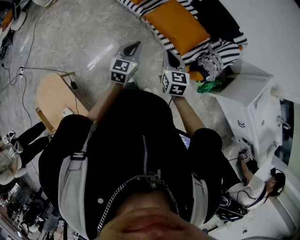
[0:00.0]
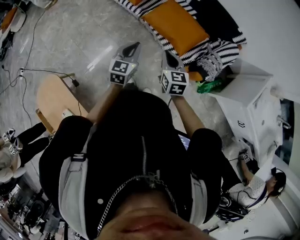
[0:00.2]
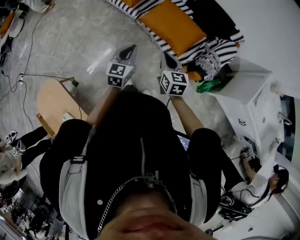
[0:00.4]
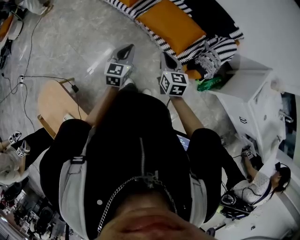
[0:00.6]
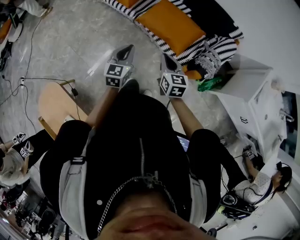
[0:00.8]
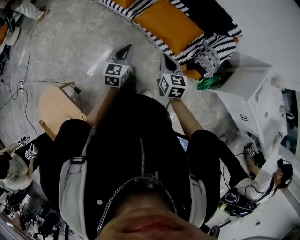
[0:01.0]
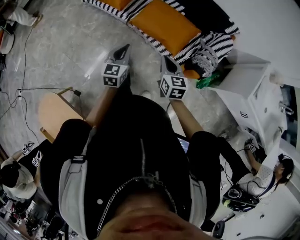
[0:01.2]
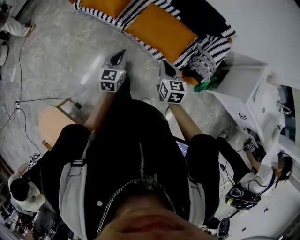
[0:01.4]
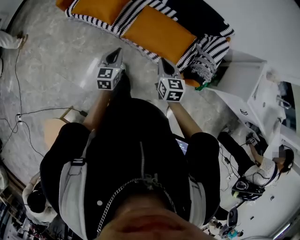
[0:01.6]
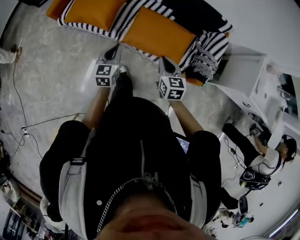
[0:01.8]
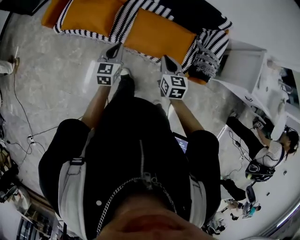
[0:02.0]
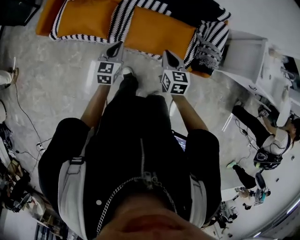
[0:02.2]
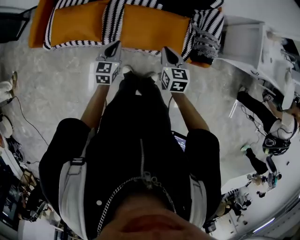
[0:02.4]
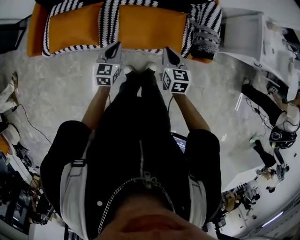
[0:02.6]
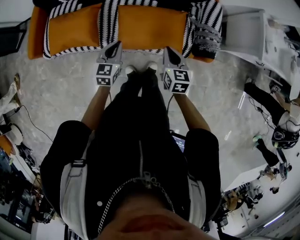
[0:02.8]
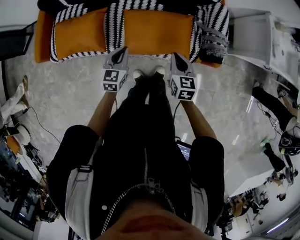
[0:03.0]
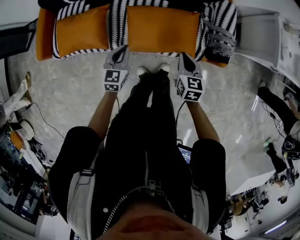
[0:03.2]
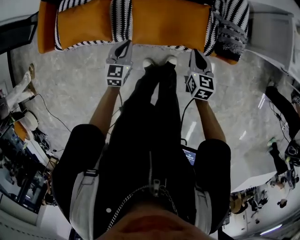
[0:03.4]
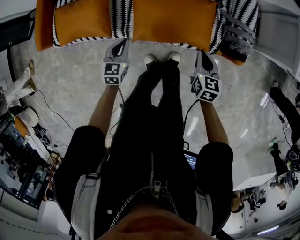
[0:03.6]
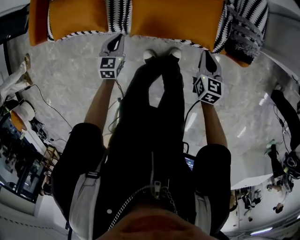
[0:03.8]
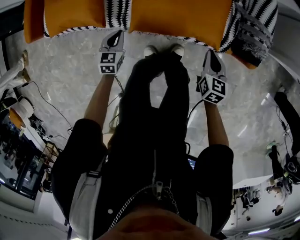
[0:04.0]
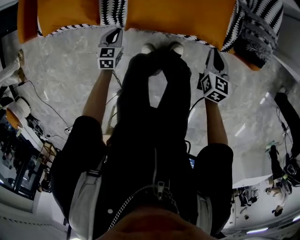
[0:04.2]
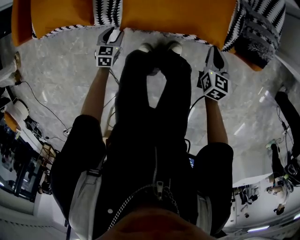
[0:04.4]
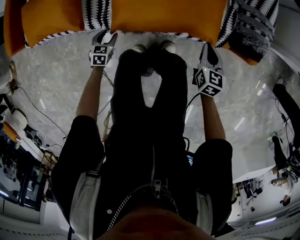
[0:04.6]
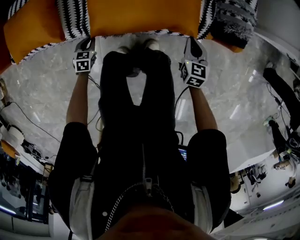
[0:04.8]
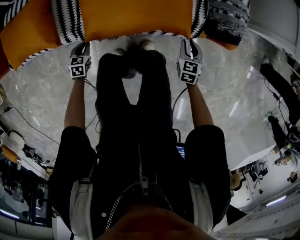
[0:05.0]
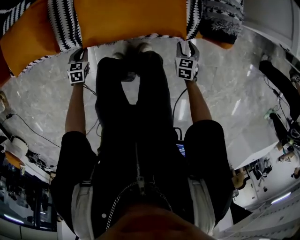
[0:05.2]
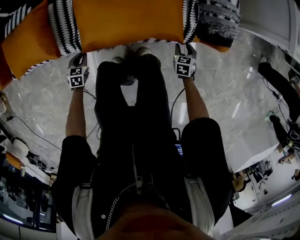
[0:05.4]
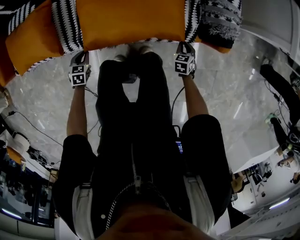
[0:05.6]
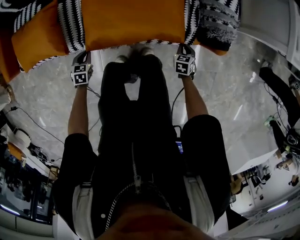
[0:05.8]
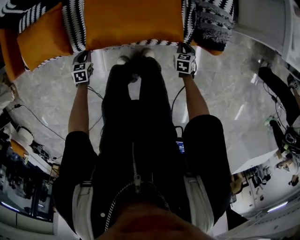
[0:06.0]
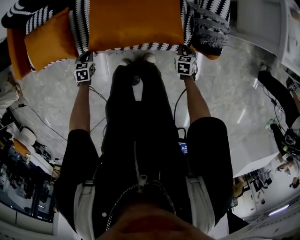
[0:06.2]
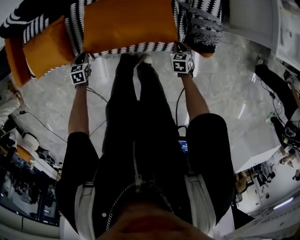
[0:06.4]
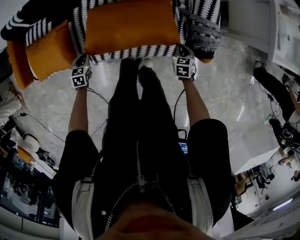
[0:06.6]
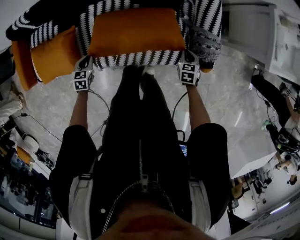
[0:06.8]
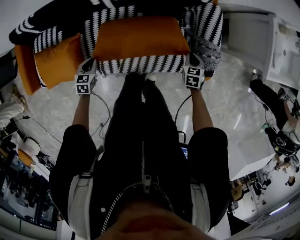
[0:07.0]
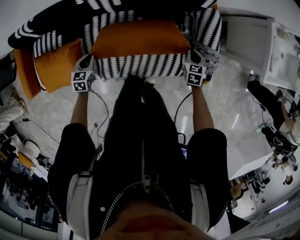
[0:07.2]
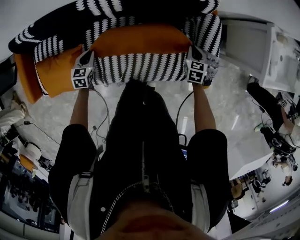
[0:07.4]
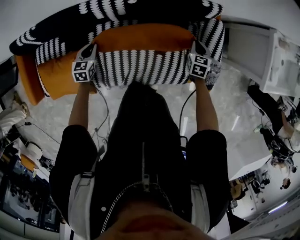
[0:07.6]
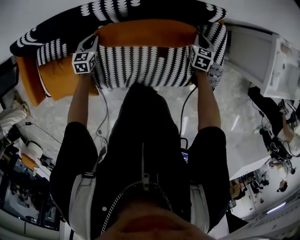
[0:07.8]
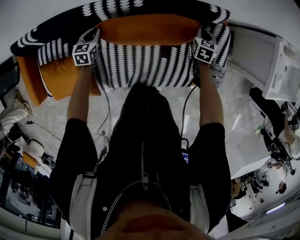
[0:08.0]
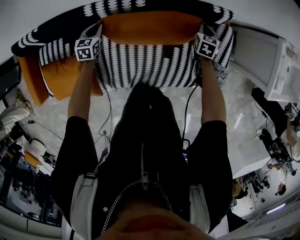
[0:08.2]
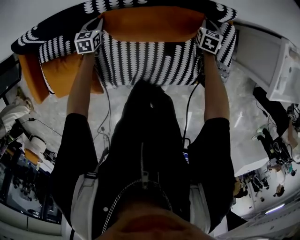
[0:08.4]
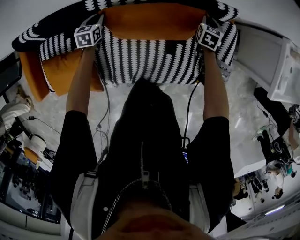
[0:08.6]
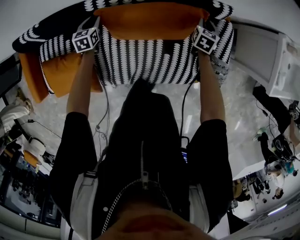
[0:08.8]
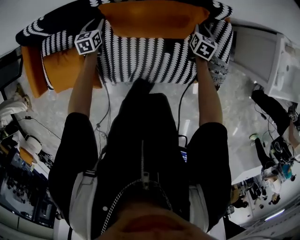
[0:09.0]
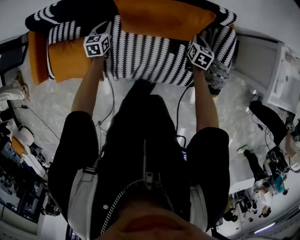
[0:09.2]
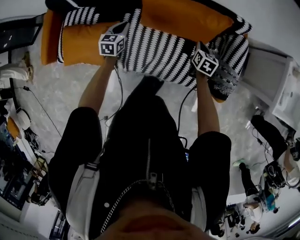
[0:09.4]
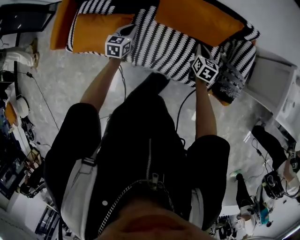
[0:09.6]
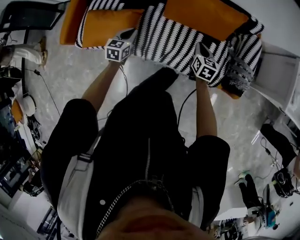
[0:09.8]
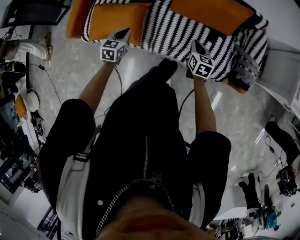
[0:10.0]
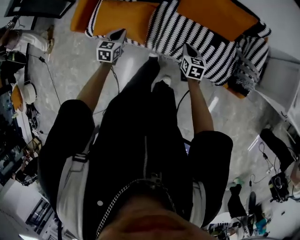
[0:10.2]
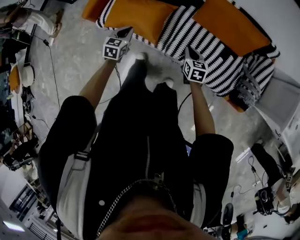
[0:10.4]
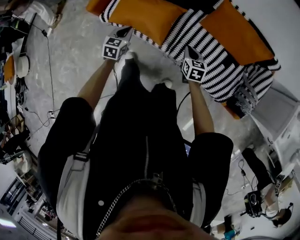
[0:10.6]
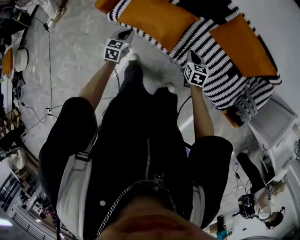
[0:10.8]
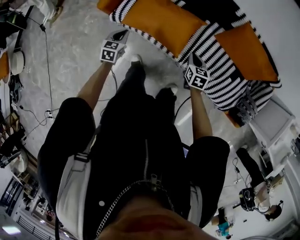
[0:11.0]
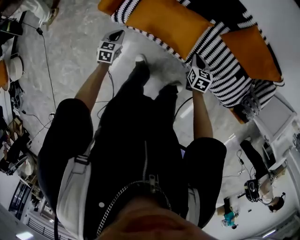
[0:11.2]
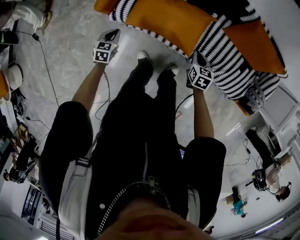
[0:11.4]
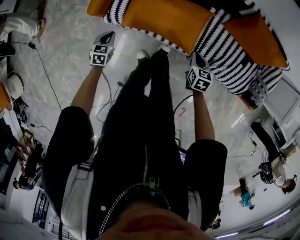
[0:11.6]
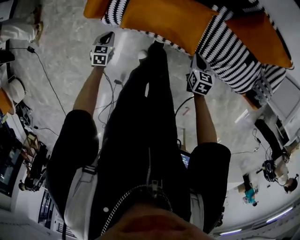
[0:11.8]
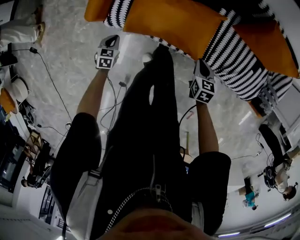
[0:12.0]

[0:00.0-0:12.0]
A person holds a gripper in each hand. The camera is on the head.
0:00.0 to 0:01.6: The two grippers go about 20 cm forward.
0:01.6 to 0:03.0: The left gripper ends up approximately 20 cm from where it was, and turns by some 30 degrees; the right gripper changes place by approximately 10 cm, and swivels some 30 degrees.
0:03.0 to 0:04.4: Both grippers travel together downward, about 35 cm. The left gripper rotates roughly 20 degrees, and opens.
0:04.4 to 0:06.0: The left gripper shifts roughly 10 cm upward, and closes up. Meanwhile the right gripper shifts roughly 15 cm to the right and downward, rotates roughly 30 degrees, and opens and closes again.
0:06.0 to 0:07.6: Both grippers travel together forward and upward, about 40 cm.
0:07.6 to 0:09.0: The left gripper heads forward, covering approximately 10 cm. Meanwhile the right gripper is displaced to the left and forward by some 10 cm.
0:09.0 to 0:10.4: The two grippers travel together, roughly 50 cm. The right gripper swivels roughly 40 degrees. Meanwhile the left gripper closes its fingers.
0:10.4 to 0:12.0: The right gripper goes approximately 35 cm to the left. Meanwhile the left gripper moves to the left and downward, about 50 cm.

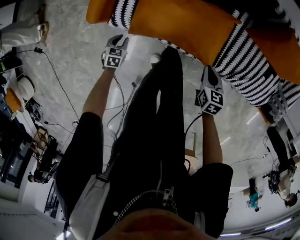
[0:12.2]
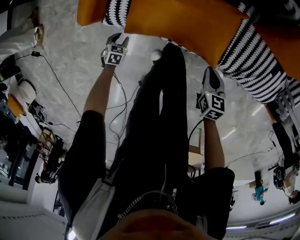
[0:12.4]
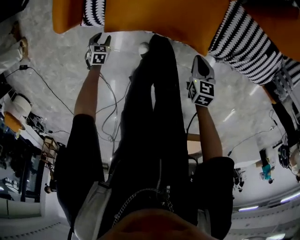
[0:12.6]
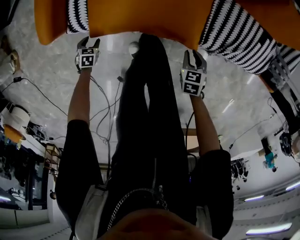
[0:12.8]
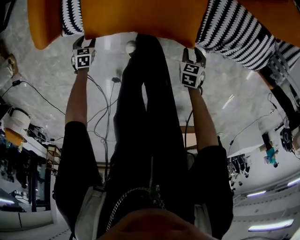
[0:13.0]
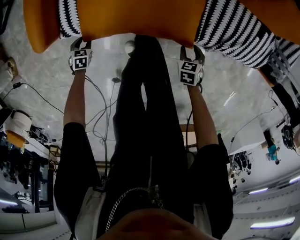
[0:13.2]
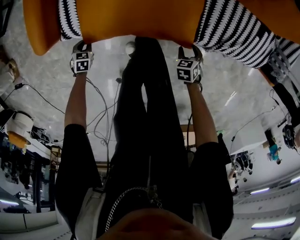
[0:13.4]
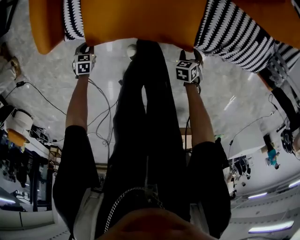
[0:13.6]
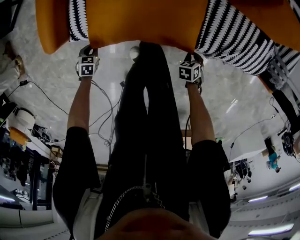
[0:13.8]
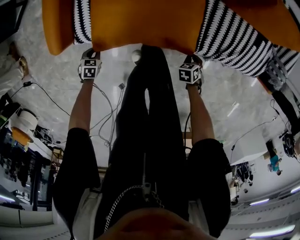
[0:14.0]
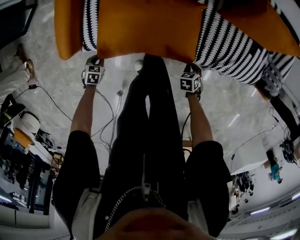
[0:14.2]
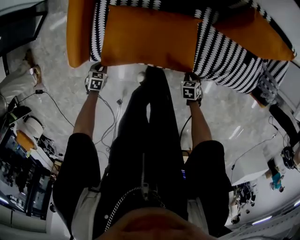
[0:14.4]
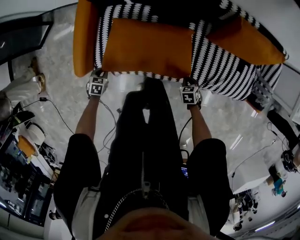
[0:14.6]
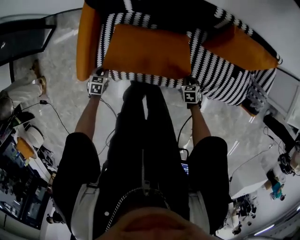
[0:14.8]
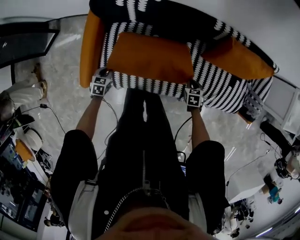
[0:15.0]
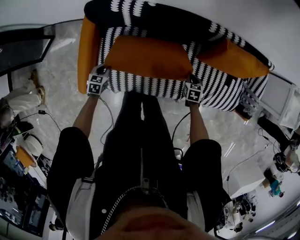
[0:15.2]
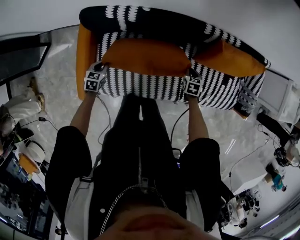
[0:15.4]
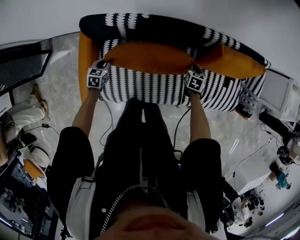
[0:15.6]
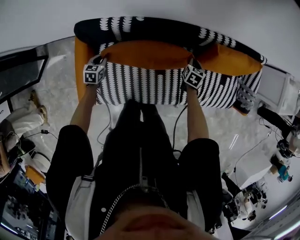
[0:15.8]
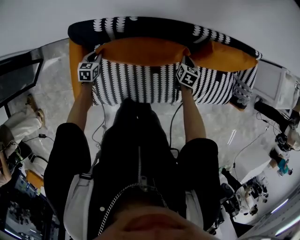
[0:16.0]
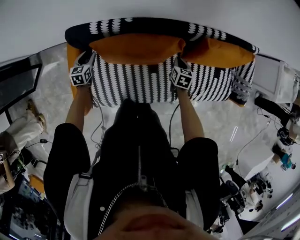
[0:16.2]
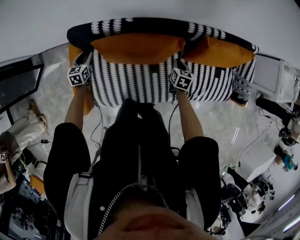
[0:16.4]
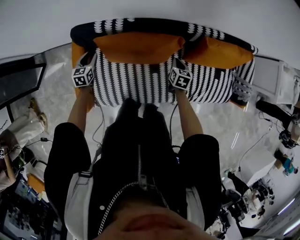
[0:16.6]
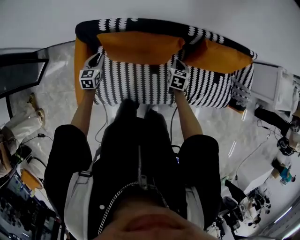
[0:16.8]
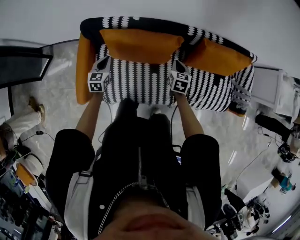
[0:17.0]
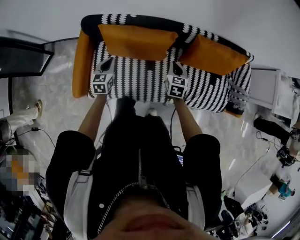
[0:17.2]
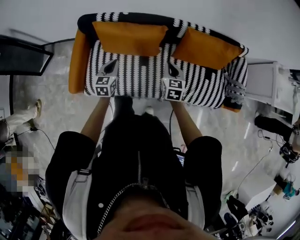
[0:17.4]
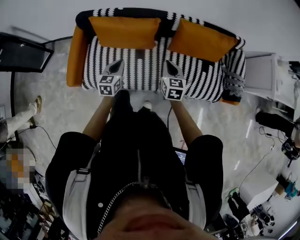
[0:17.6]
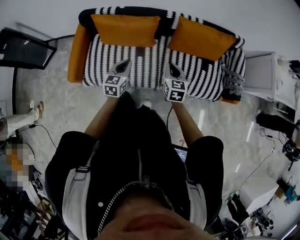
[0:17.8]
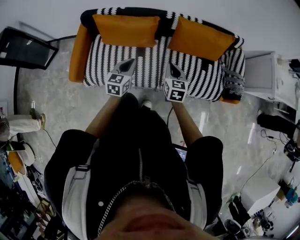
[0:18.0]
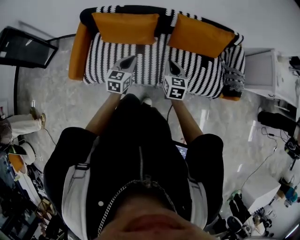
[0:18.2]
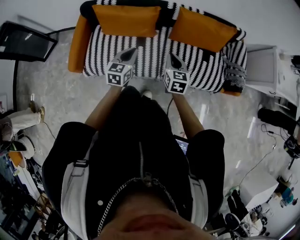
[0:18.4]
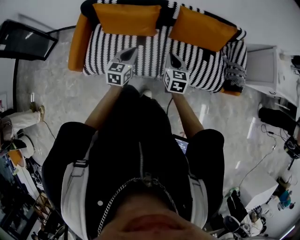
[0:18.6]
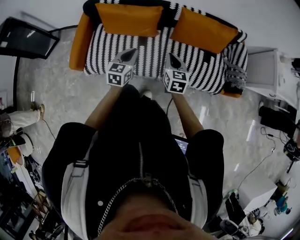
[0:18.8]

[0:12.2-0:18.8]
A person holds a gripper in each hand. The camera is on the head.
0:12.2 to 0:13.8: The right gripper heads downward, covering roughly 20 cm, turns by some 40 degrees, and opens, then closes again, while the left gripper travels downward by some 10 cm, and opens, then closes once more.
0:13.8 to 0:15.4: The right gripper ends up about 40 cm from where it was, and changes its angle by roughly 30 degrees. The left gripper shifts by about 40 cm, and swivels some 20 degrees.
0:15.4 to 0:17.2: The right gripper travels upward by approximately 20 cm, and changes its angle by roughly 30 degrees, while the left gripper goes approximately 20 cm upward and to the right, rotates roughly 30 degrees, and opens, then closes again.
0:17.2 to 0:18.8: The right gripper shifts approximately 25 cm backward and to the right. Meanwhile the left gripper is displaced to the right and backward by roughly 35 cm.

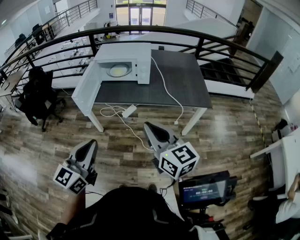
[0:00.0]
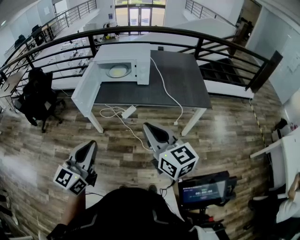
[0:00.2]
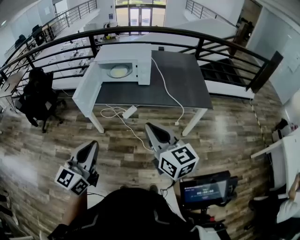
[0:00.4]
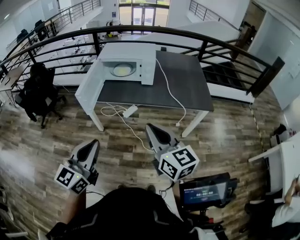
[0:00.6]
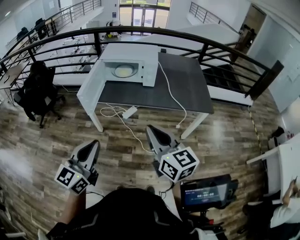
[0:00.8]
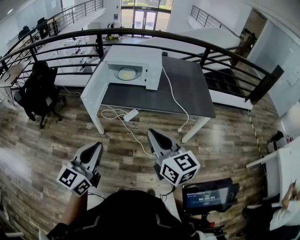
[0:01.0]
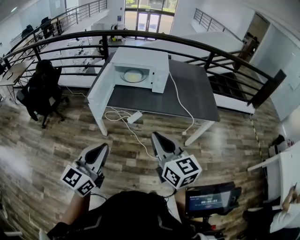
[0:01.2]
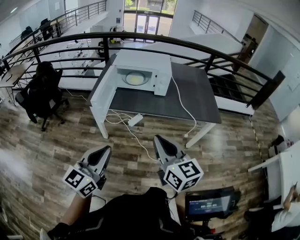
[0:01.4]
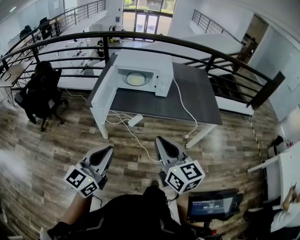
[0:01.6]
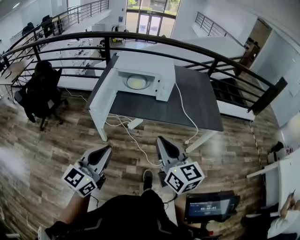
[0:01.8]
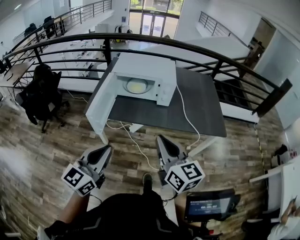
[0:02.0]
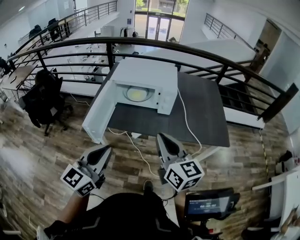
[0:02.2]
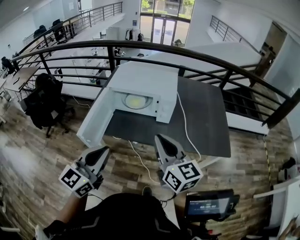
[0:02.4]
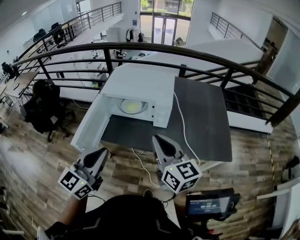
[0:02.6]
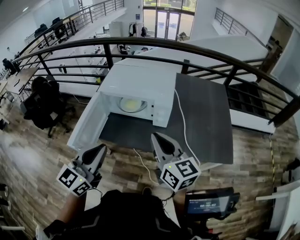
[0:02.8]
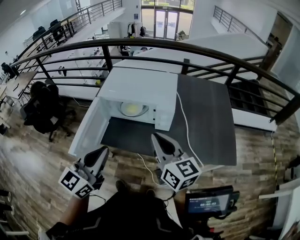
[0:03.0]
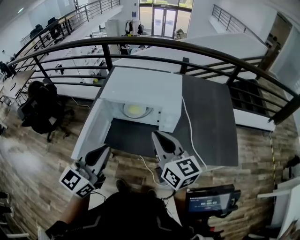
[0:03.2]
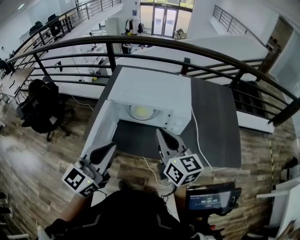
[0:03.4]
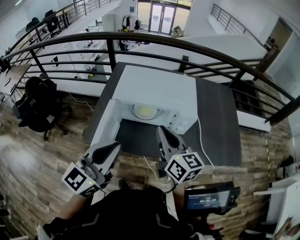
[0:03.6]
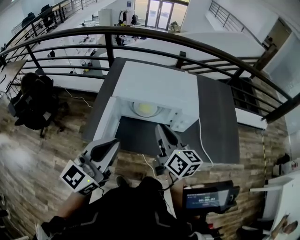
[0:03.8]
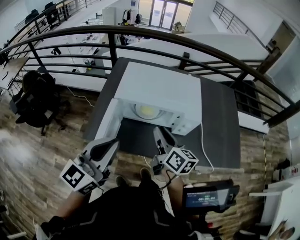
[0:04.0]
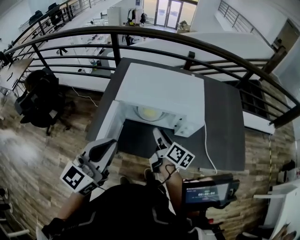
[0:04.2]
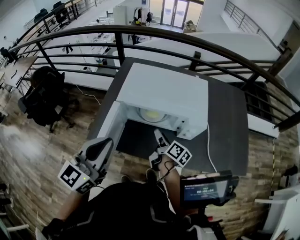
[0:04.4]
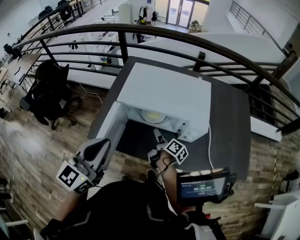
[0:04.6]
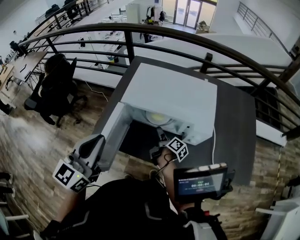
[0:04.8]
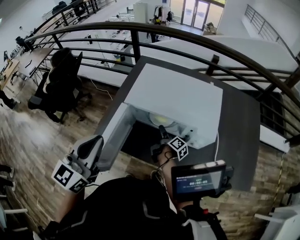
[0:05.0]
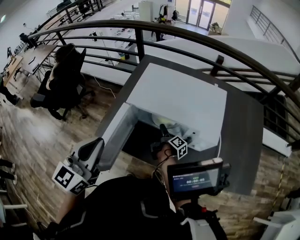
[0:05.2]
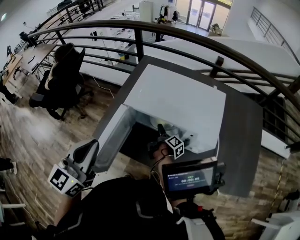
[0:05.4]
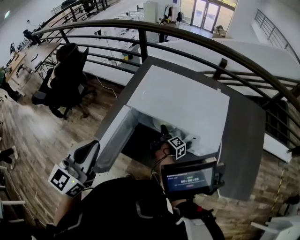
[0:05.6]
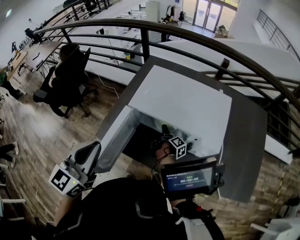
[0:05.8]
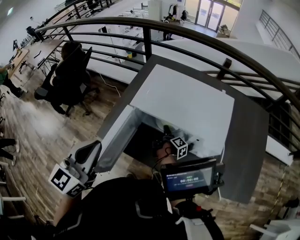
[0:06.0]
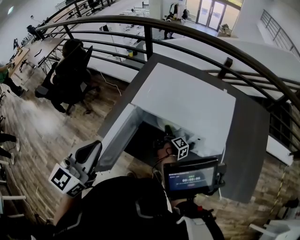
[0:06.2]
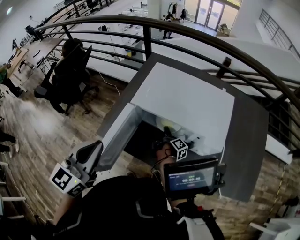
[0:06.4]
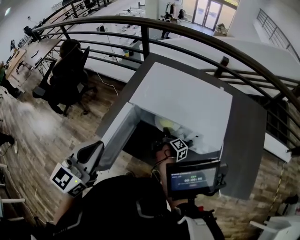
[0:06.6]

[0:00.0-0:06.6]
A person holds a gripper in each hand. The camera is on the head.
0:00.0 to 0:01.6: Both grippers travel together to the left, about 10 cm.
0:01.6 to 0:03.2: The grippers both shift forward by approximately 40 cm.
0:03.2 to 0:05.0: The left gripper is displaced to the left and forward by approximately 15 cm. Meanwhile the right gripper heads downward and forward, covering about 40 cm, rotates around the line of its fingers by about 70 degrees, clockwise from behind, and opens its fingers.
0:05.0 to 0:06.6: The right gripper closes.
